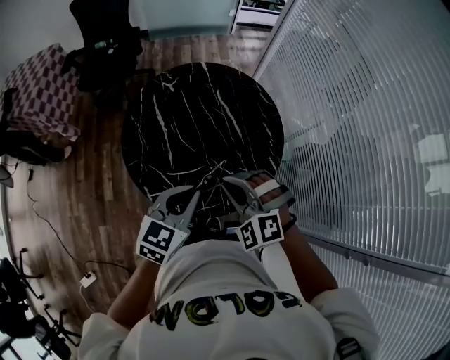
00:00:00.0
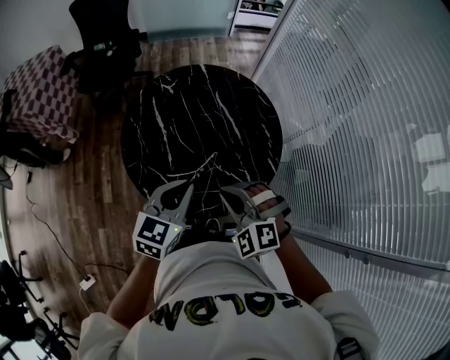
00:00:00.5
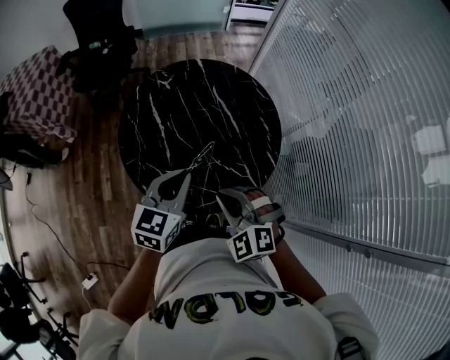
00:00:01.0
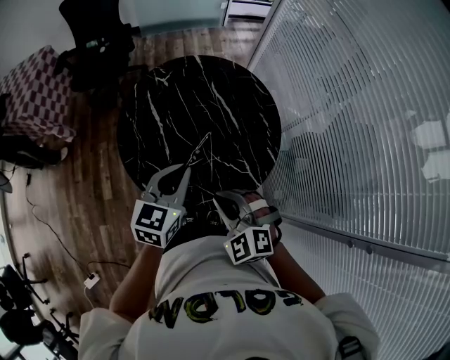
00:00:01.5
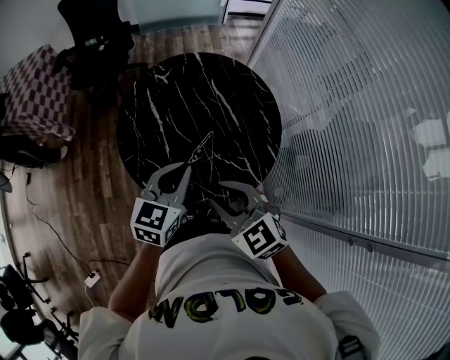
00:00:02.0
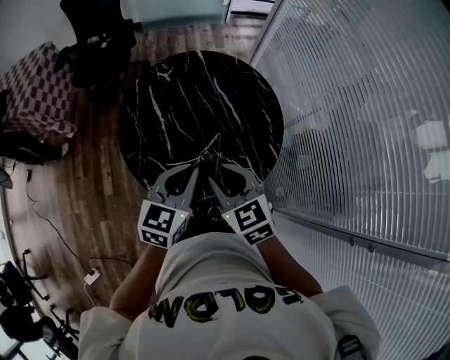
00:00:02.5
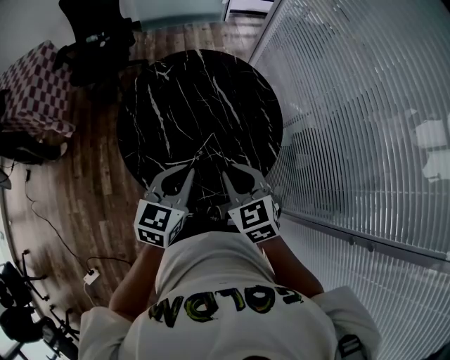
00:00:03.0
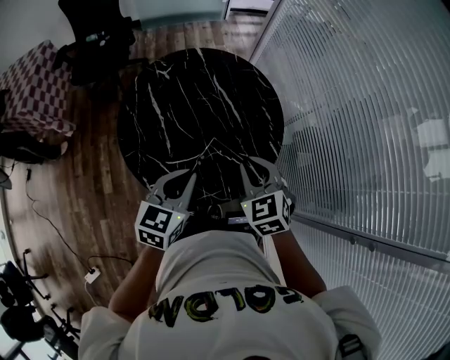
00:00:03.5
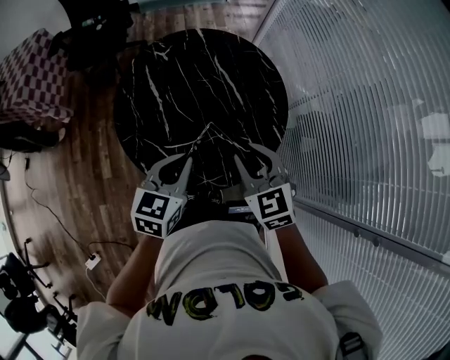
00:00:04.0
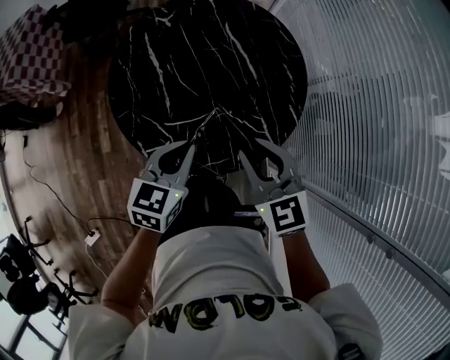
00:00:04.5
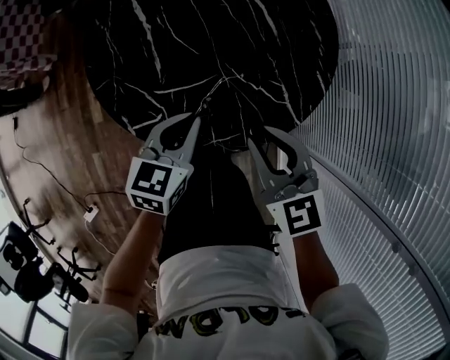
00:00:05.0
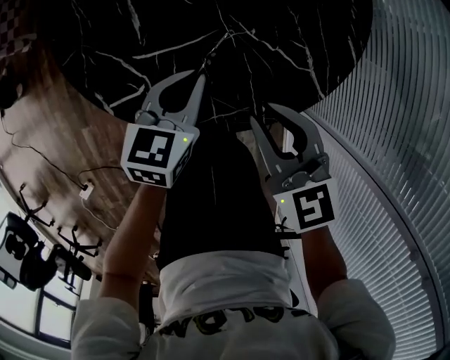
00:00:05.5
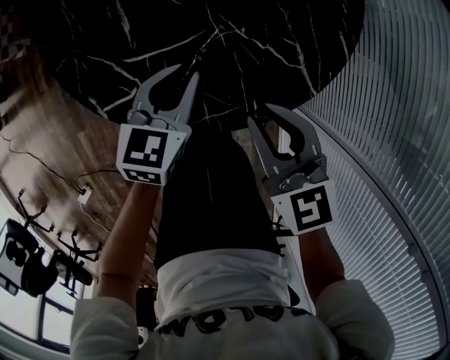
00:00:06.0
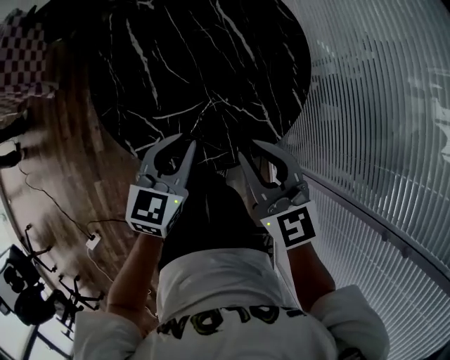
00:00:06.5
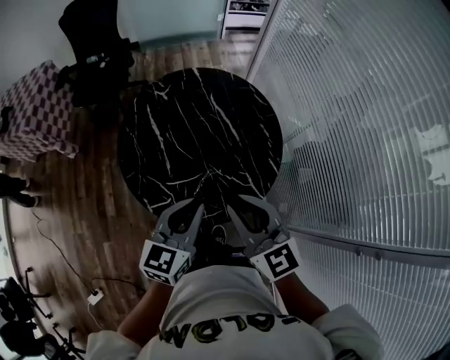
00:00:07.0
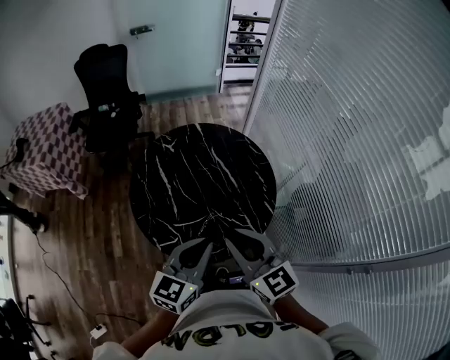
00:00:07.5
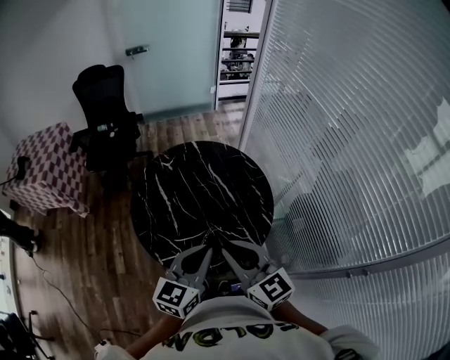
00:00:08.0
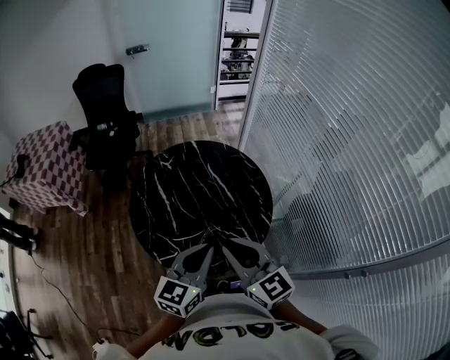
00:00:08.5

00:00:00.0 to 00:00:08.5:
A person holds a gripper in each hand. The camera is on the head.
00:00:00.0 to 00:00:02.0: The right gripper moves about 5 cm, twists roughly 40 degrees clockwise, seen from behind, and opens its fingers.
00:00:02.0 to 00:00:04.0: The right gripper heads forward and to the right, covering about 10 cm.
00:00:04.0 to 00:00:06.5: The right gripper moves about 20 cm downward and comes back; the left gripper moves downward, about 10 cm.
00:00:06.5 to 00:00:08.5: The grippers both shift upward by about 20 cm.

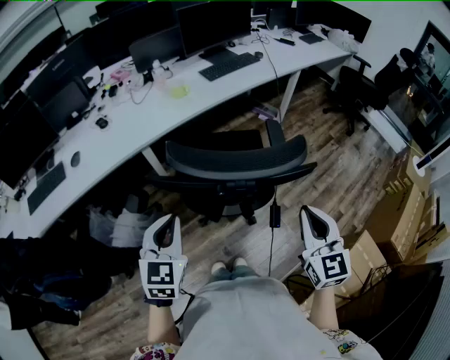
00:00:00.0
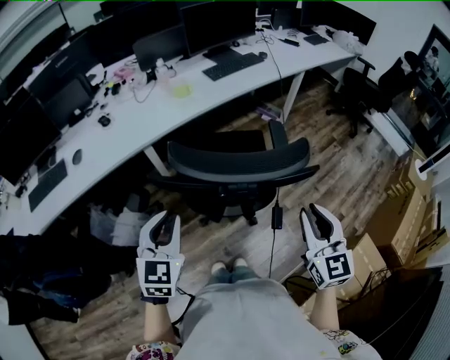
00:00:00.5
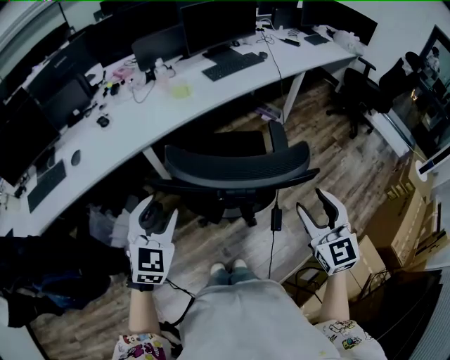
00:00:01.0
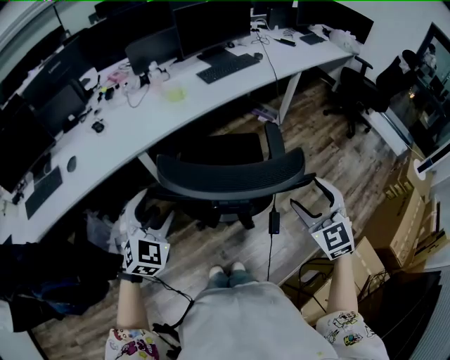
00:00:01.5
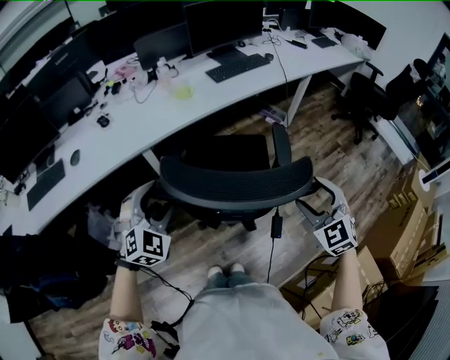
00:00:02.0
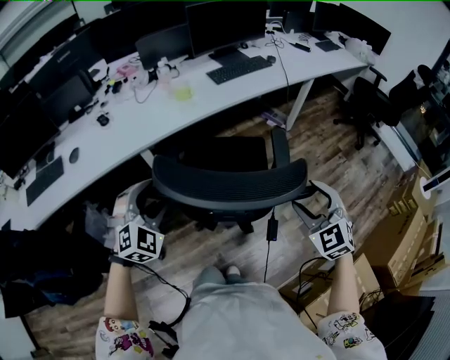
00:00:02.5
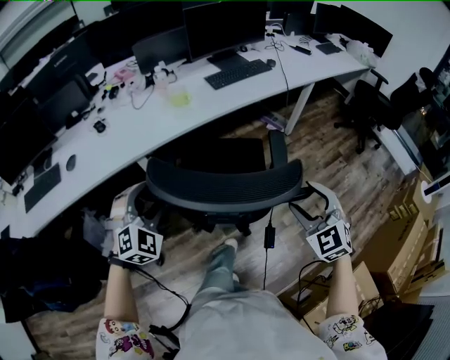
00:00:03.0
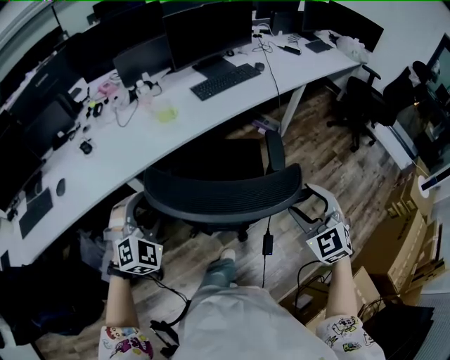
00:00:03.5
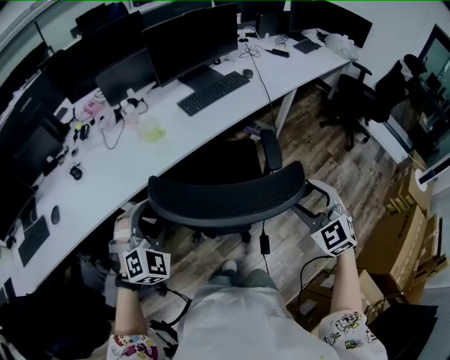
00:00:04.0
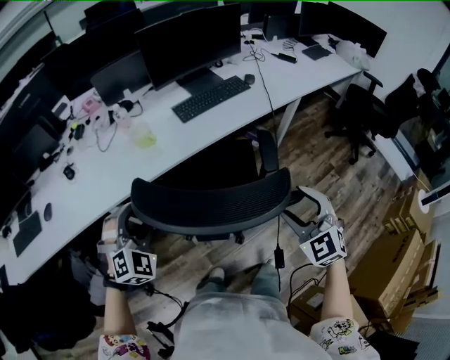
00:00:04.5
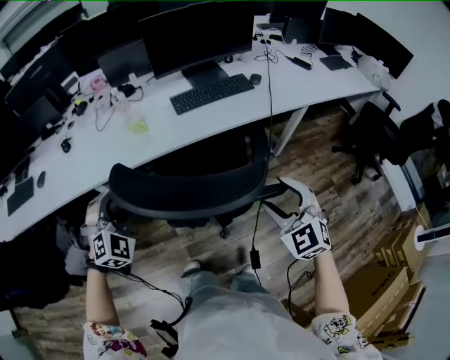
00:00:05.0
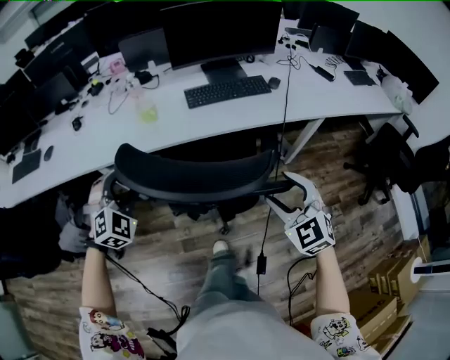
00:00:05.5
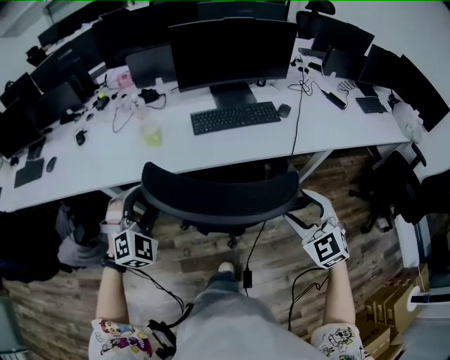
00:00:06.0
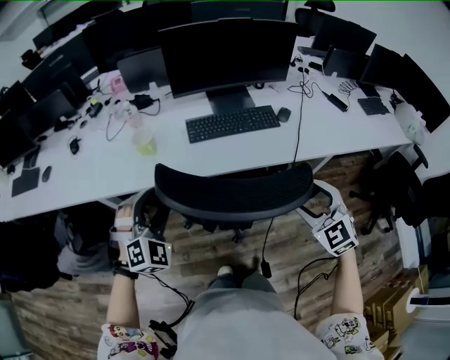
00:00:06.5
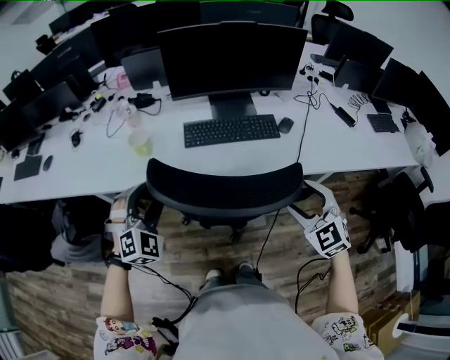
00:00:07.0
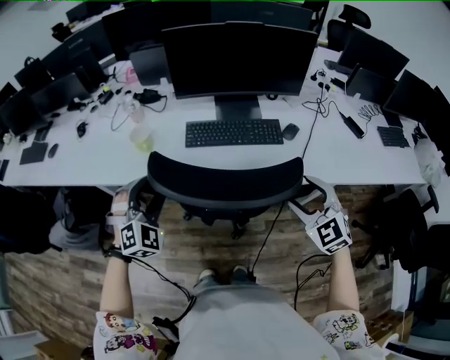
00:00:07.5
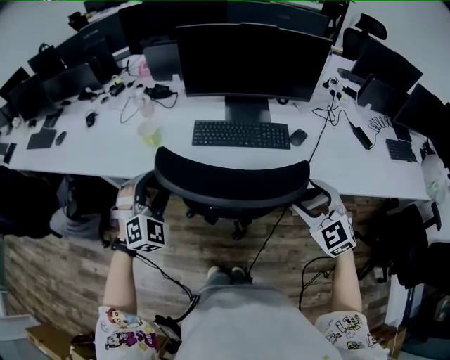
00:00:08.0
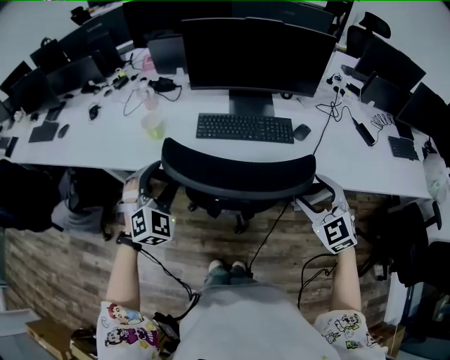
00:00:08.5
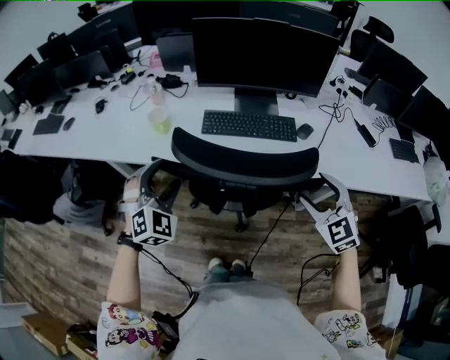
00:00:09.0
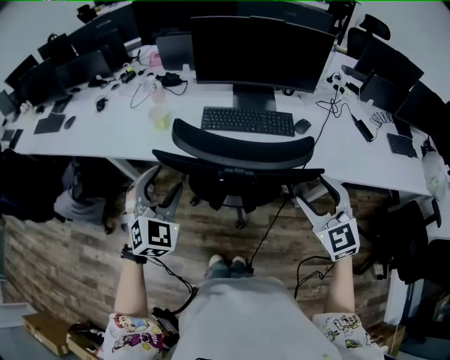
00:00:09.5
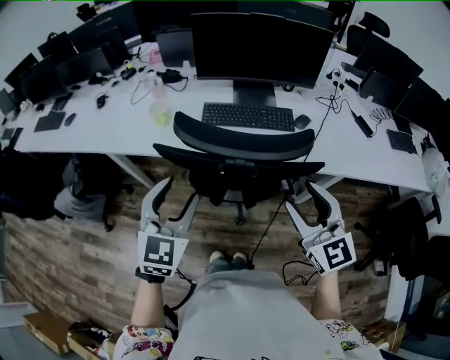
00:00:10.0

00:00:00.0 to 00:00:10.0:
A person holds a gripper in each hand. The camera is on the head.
00:00:00.0 to 00:00:02.0: The grippers both shift forward by about 10 cm. The left gripper rotates some 40 degrees, and opens. The right gripper changes its angle by approximately 40 degrees, and opens.
00:00:02.0 to 00:00:04.0: Both grippers travel together forward, approximately 15 cm.
00:00:04.0 to 00:00:06.0: The left gripper moves to the right and forward, approximately 20 cm, and swivels roughly 20 degrees. Meanwhile the right gripper goes about 30 cm forward and to the right, and rotates some 30 degrees.
00:00:06.0 to 00:00:08.0: The left gripper goes roughly 15 cm to the right and forward; the right gripper is displaced forward and to the right by approximately 20 cm.
00:00:08.0 to 00:00:10.0: The left gripper travels backward and upward by some 15 cm, and rotates around the line of its fingers by roughly 40 degrees, counterclockwise from behind. Meanwhile the right gripper travels backward, to the left and upward by some 15 cm, and turns by roughly 30 degrees.

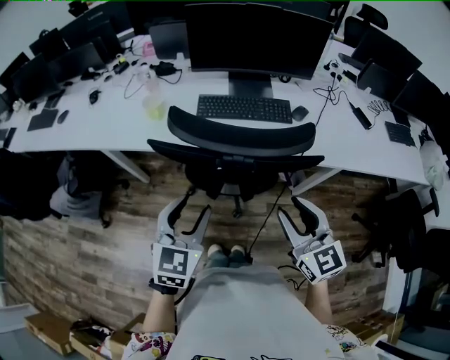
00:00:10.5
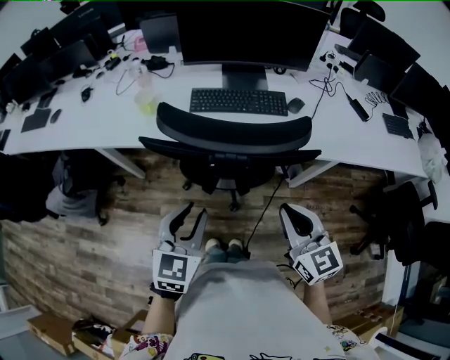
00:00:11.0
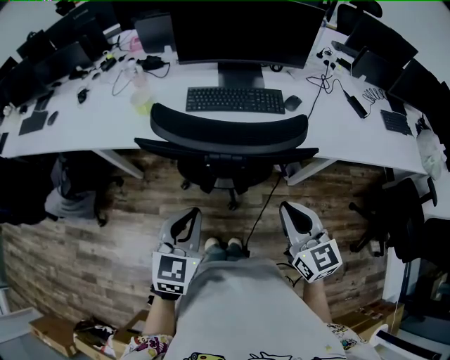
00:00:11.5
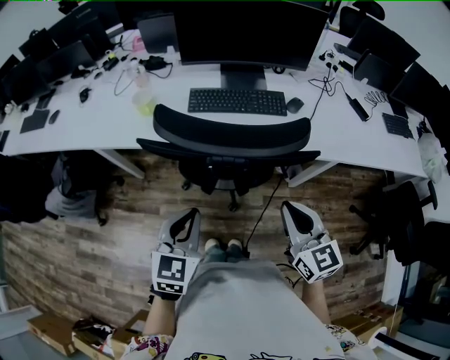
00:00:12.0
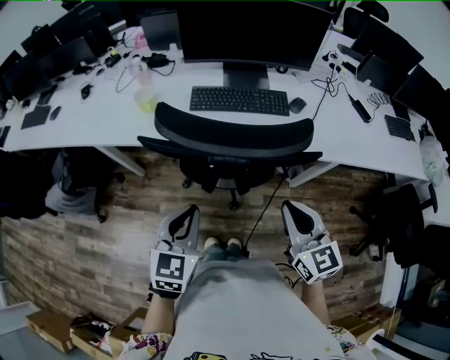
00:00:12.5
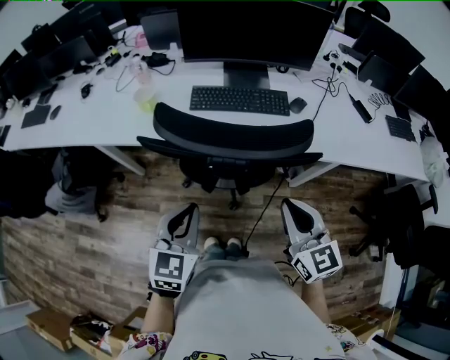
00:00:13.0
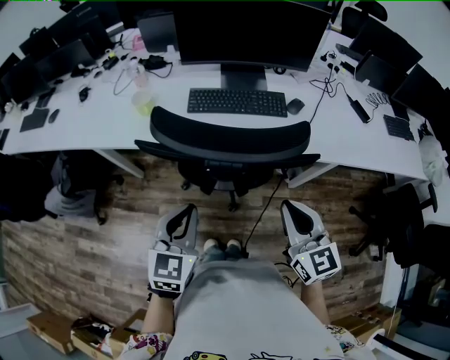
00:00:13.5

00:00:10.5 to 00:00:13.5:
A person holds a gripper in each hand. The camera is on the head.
00:00:10.5 to 00:00:12.0: The right gripper closes up. The left gripper closes its fingers.
00:00:12.0 to 00:00:13.5: The grippers move only a little.

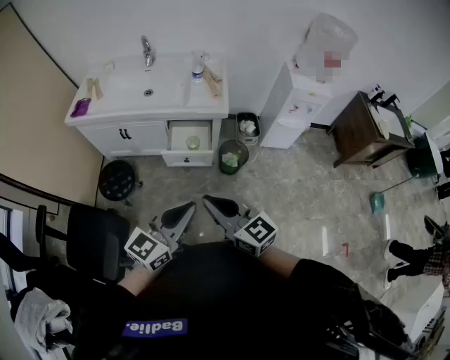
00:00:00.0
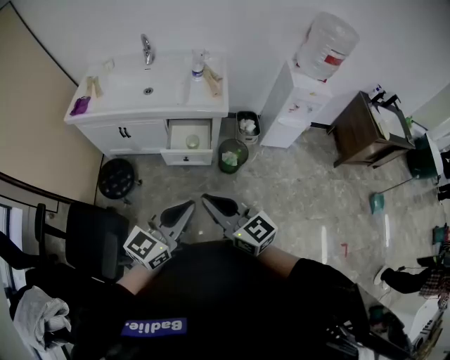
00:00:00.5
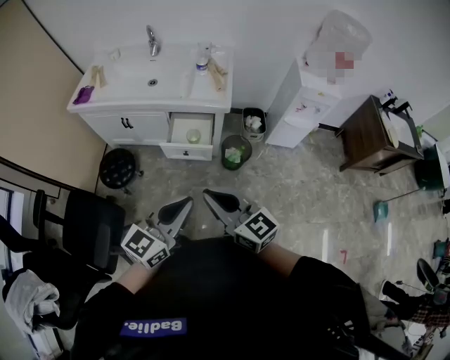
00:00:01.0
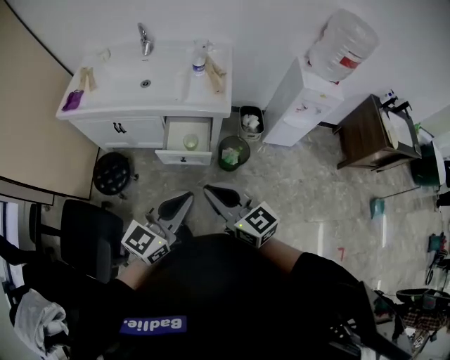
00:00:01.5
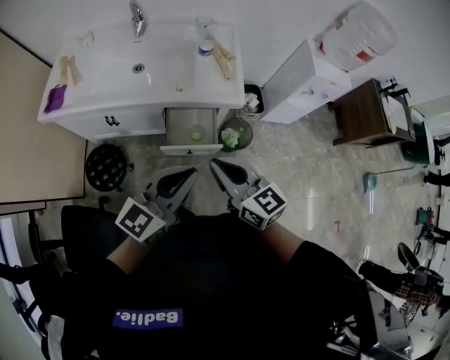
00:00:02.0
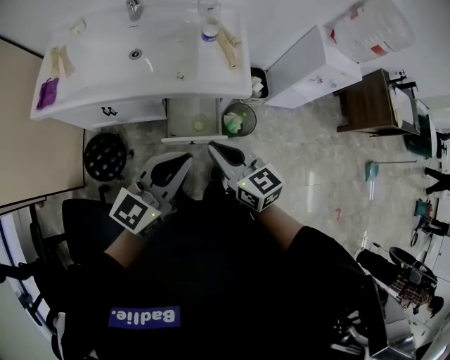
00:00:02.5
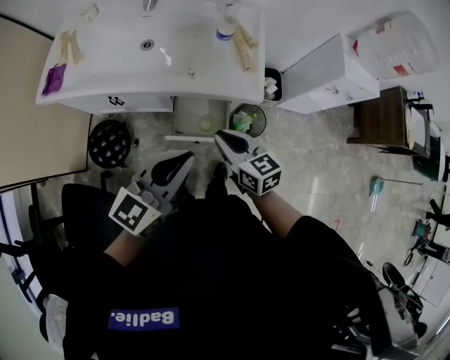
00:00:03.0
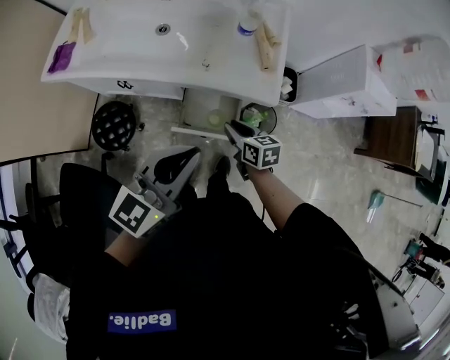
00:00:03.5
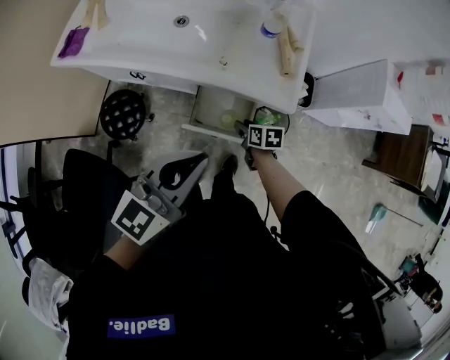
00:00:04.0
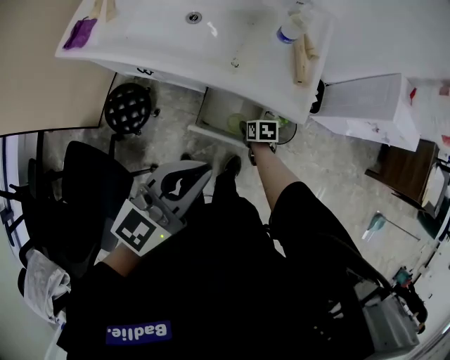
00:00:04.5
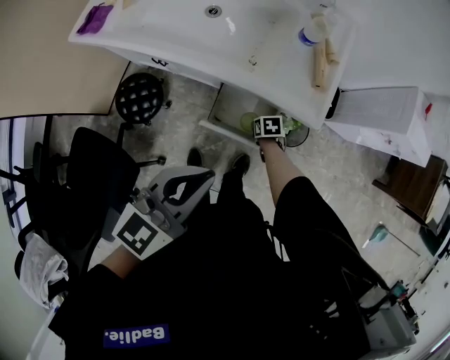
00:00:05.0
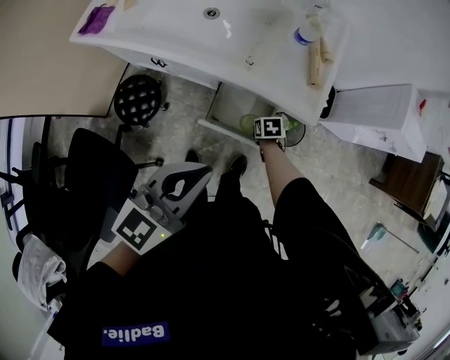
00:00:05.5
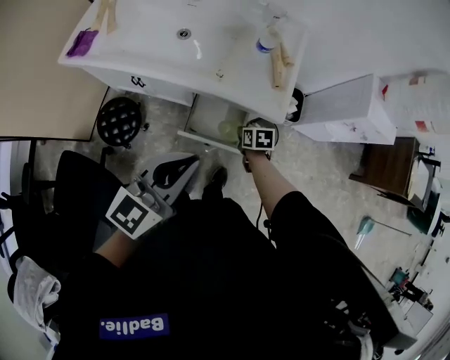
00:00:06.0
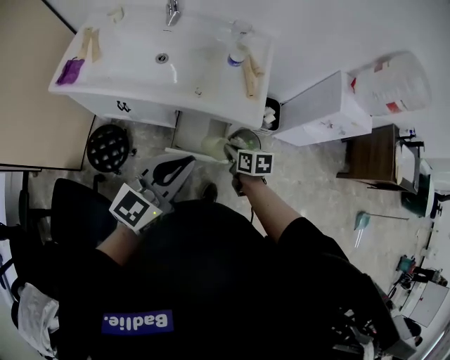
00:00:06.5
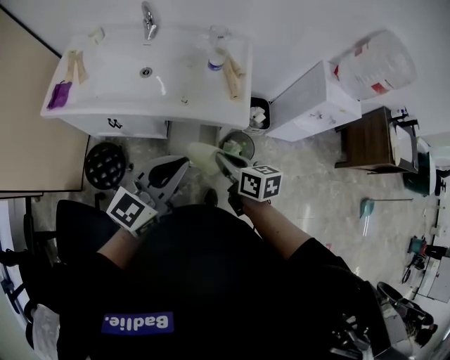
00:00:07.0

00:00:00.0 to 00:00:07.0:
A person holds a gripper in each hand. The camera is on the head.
00:00:00.0 to 00:00:02.0: The two grippers go roughly 25 cm forward.
00:00:02.0 to 00:00:03.5: The right gripper goes approximately 30 cm downward and forward, and turns by approximately 30 degrees, while the left gripper moves forward, approximately 10 cm.
00:00:03.5 to 00:00:05.0: The right gripper travels downward by some 25 cm, and angles its fingers downward, by roughly 40 degrees.
00:00:05.0 to 00:00:07.0: The right gripper goes roughly 40 cm upward, points its fingers approximately 40 degrees further upward, and closes its fingers; the left gripper travels upward by about 5 cm.
